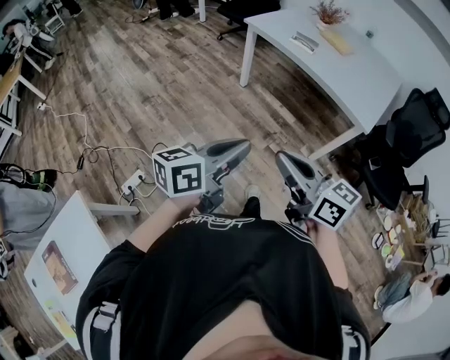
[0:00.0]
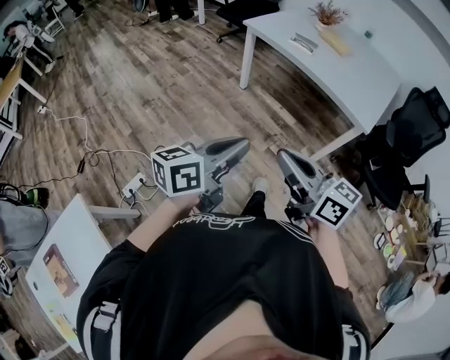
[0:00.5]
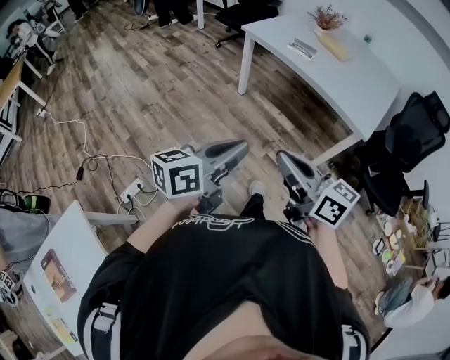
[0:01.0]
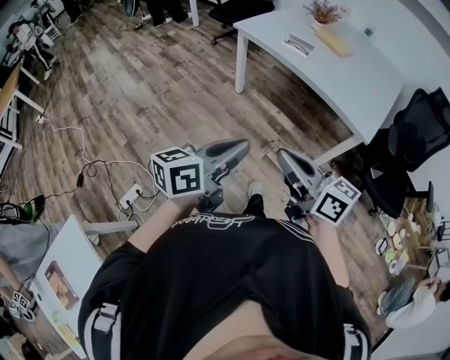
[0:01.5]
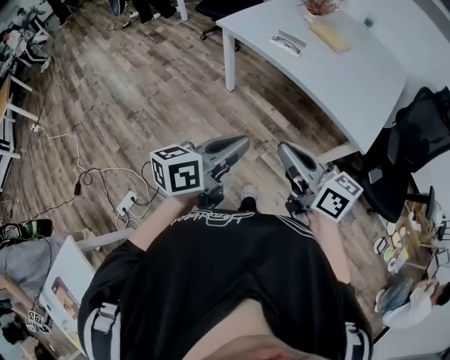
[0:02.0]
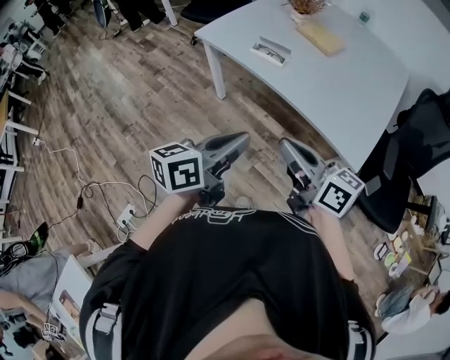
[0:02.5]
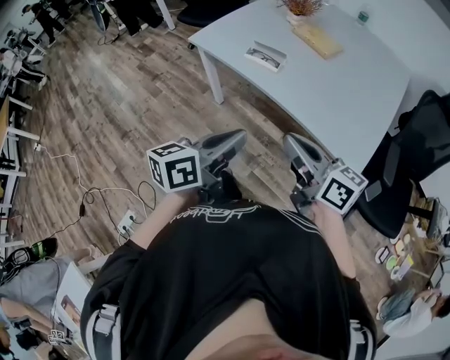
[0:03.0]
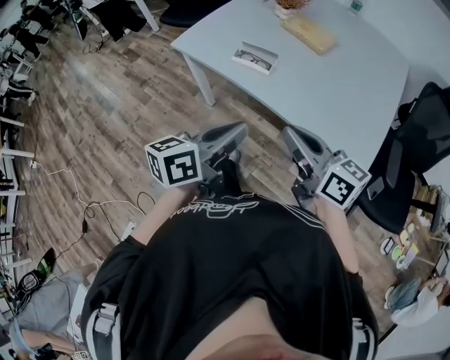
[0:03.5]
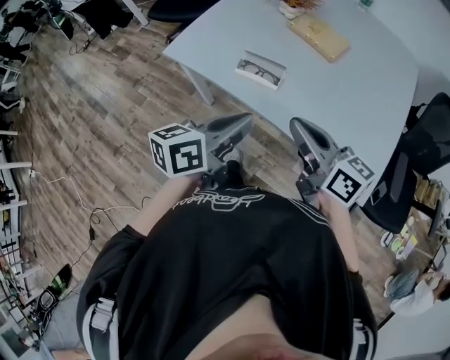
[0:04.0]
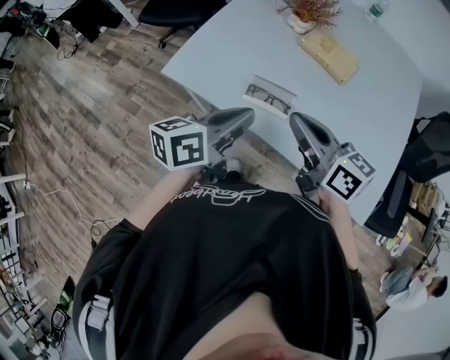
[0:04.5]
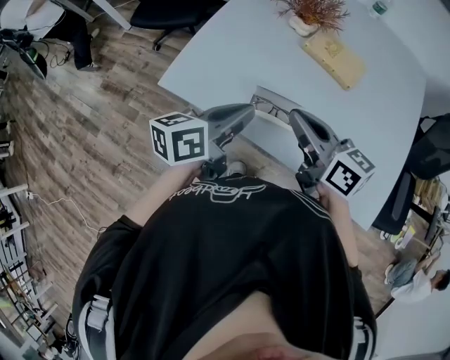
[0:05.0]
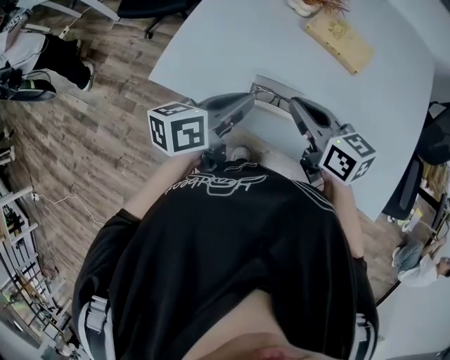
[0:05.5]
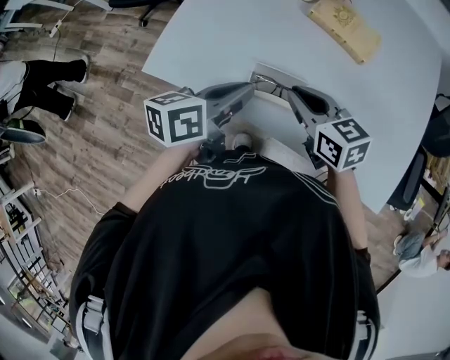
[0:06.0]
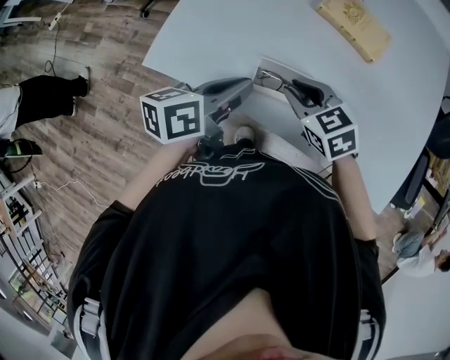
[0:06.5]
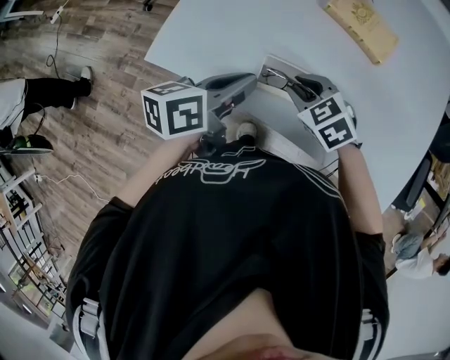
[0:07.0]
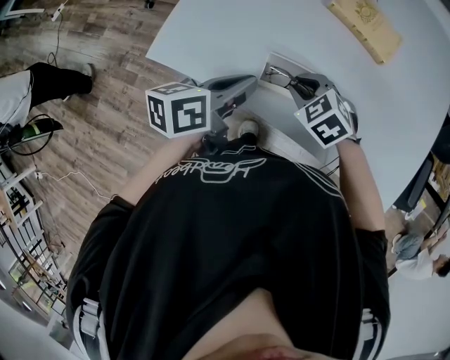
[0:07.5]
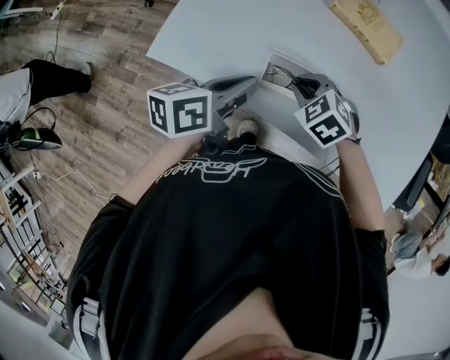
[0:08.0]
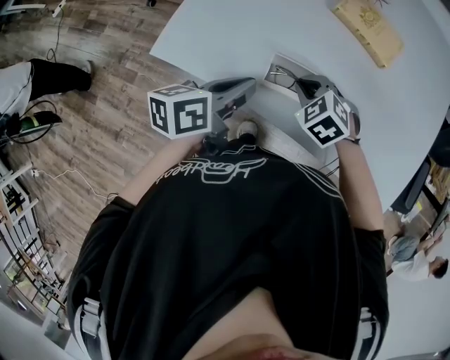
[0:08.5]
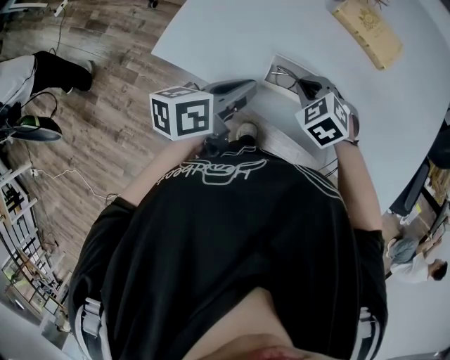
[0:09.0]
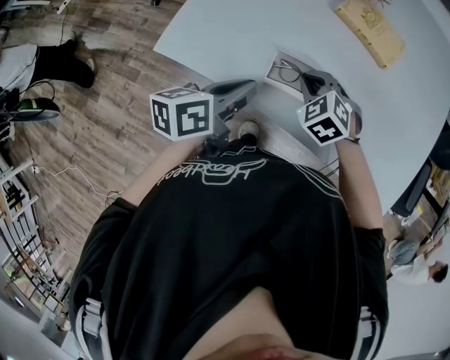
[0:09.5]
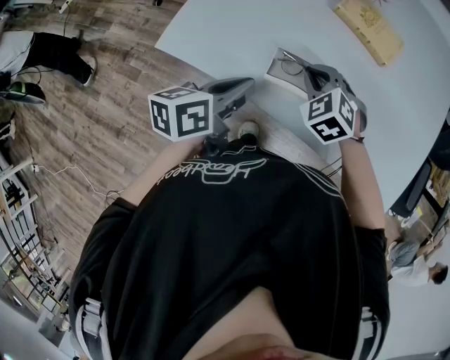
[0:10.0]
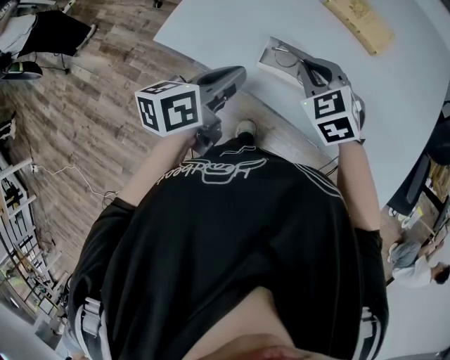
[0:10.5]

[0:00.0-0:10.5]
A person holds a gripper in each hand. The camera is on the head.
0:00.0 to 0:02.0: Both grippers travel together forward and to the right, about 25 cm.
0:02.0 to 0:04.0: The pair of grippers is taken forward, roughly 40 cm.
0:04.0 to 0:06.5: The two grippers go some 30 cm forward, downward and to the left. The right gripper tilts its fingers approximately 40 degrees downward.
0:06.5 to 0:08.5: The right gripper shifts approximately 5 cm downward, and rotates about 30 degrees.
0:08.5 to 0:10.5: The left gripper moves some 5 cm. Meanwhile the right gripper moves upward, roughly 10 cm.

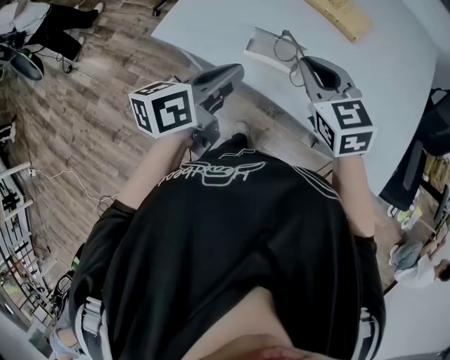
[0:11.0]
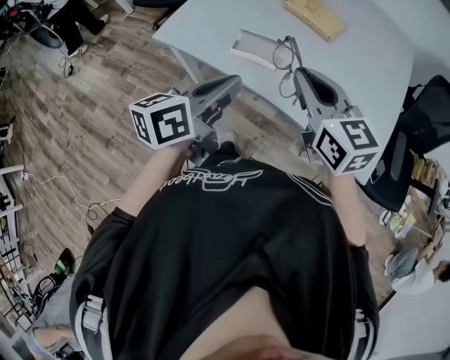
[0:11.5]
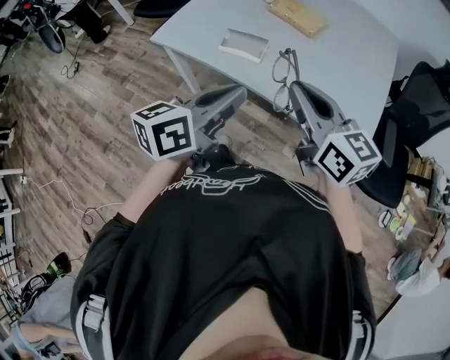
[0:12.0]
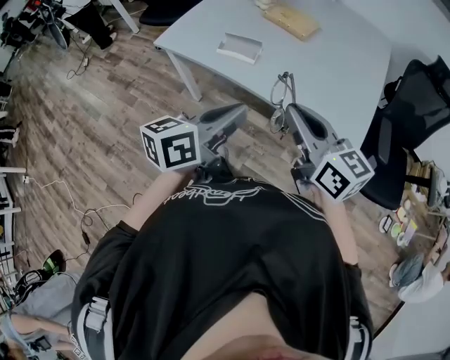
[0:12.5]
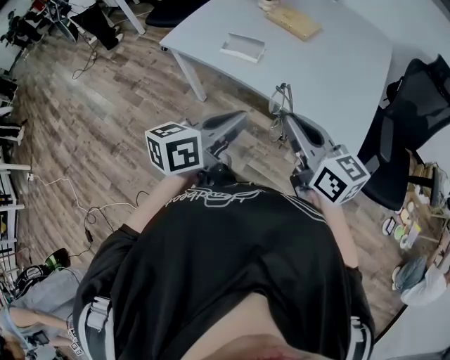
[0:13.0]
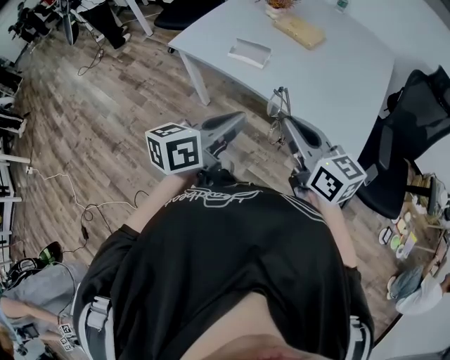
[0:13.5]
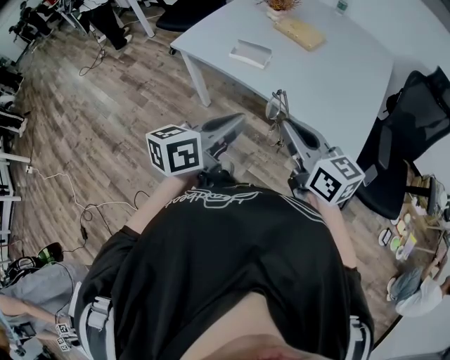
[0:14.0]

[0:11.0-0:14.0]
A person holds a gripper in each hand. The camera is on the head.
0:11.0 to 0:12.5: Both grippers travel together backward and to the right, approximately 30 cm. The right gripper swivels about 30 degrees.
0:12.5 to 0:14.0: Both grippers move backward, about 5 cm.

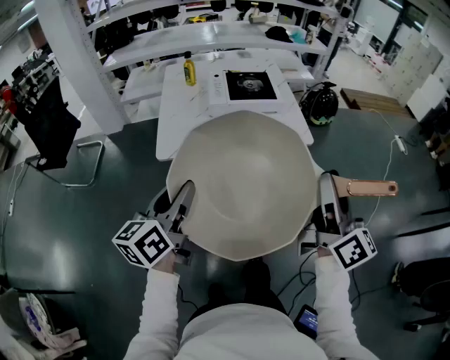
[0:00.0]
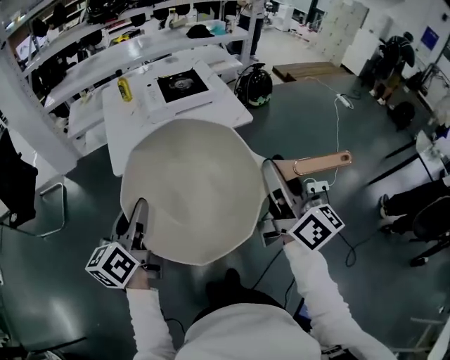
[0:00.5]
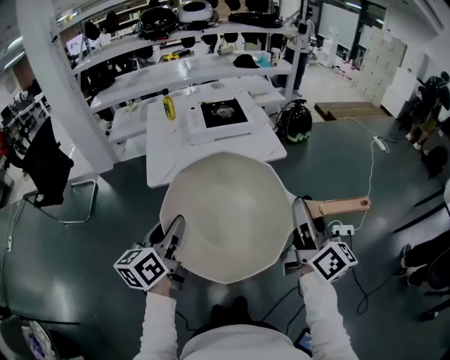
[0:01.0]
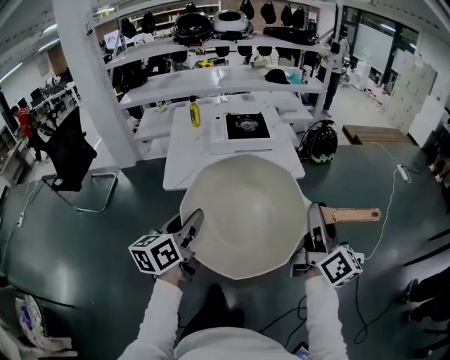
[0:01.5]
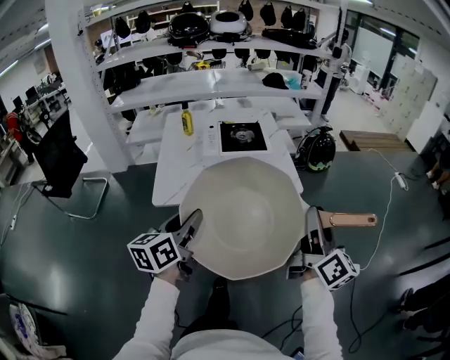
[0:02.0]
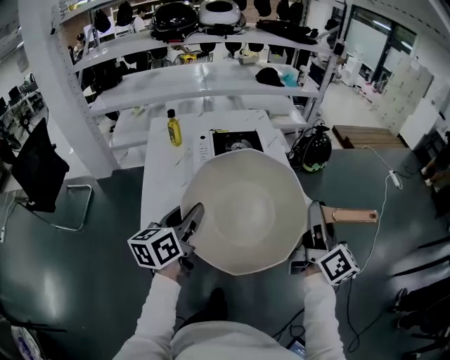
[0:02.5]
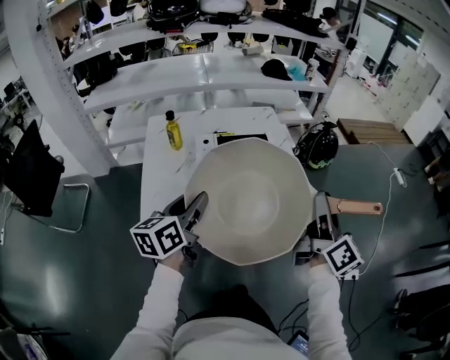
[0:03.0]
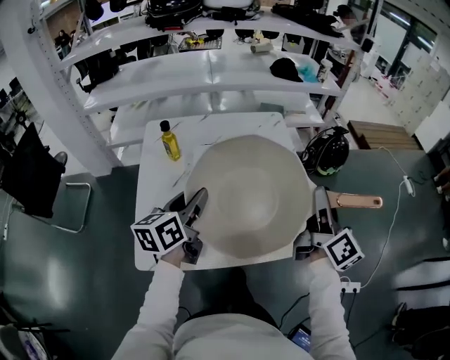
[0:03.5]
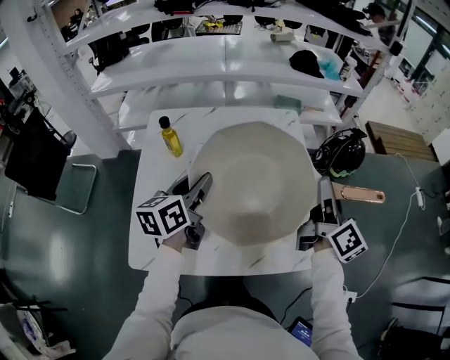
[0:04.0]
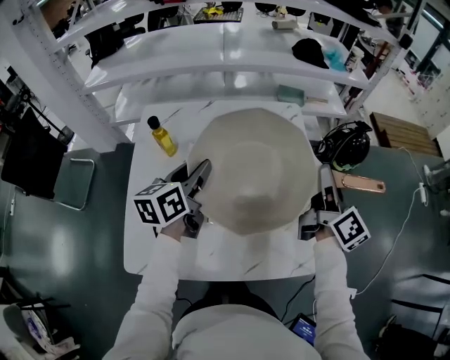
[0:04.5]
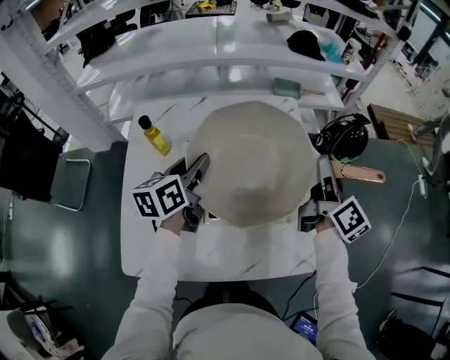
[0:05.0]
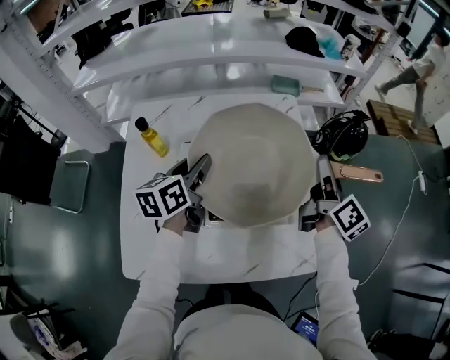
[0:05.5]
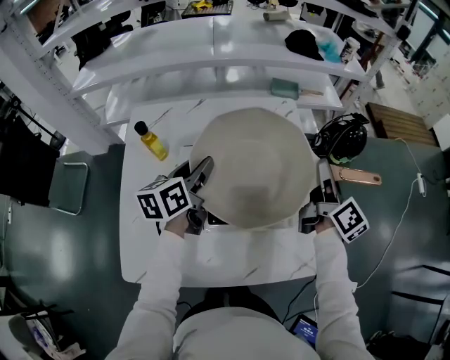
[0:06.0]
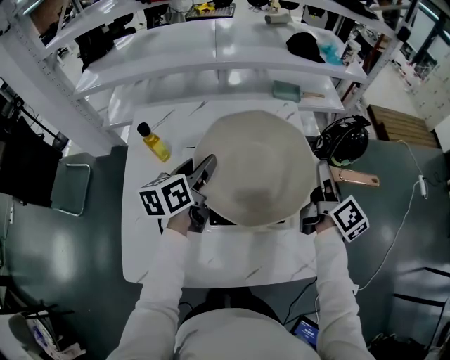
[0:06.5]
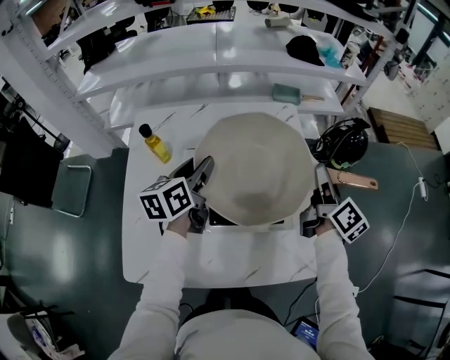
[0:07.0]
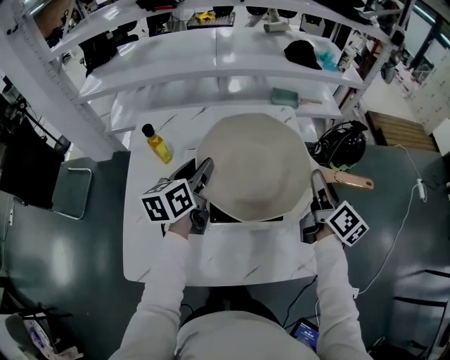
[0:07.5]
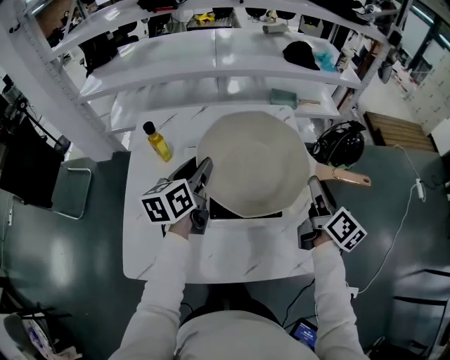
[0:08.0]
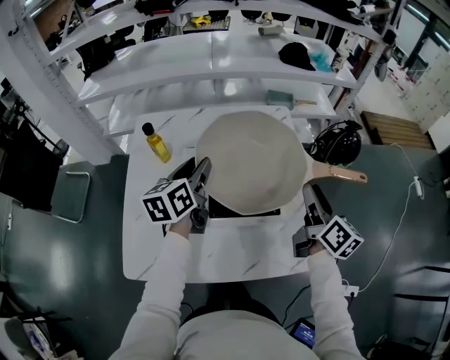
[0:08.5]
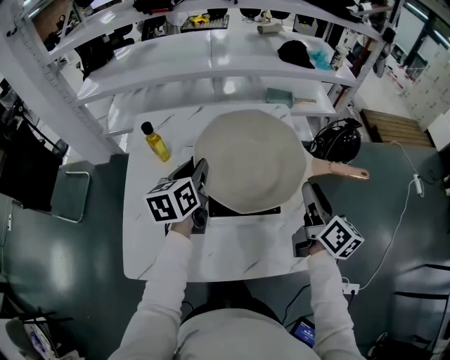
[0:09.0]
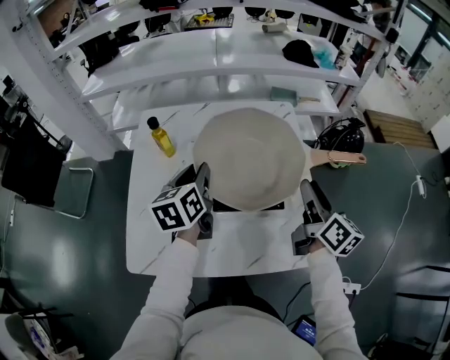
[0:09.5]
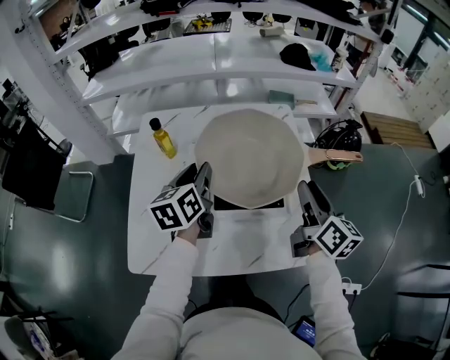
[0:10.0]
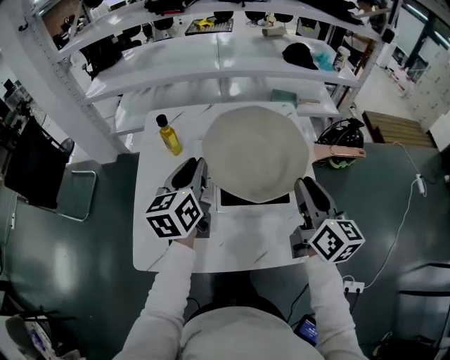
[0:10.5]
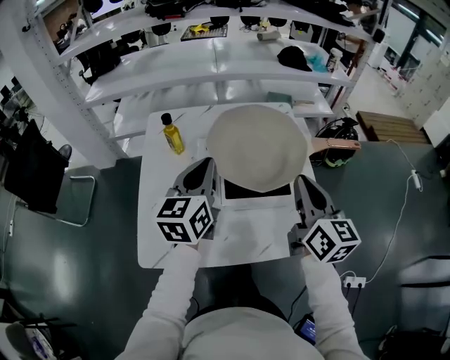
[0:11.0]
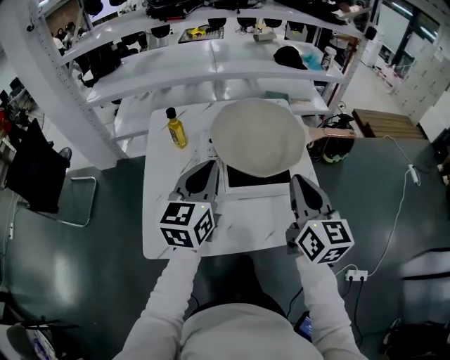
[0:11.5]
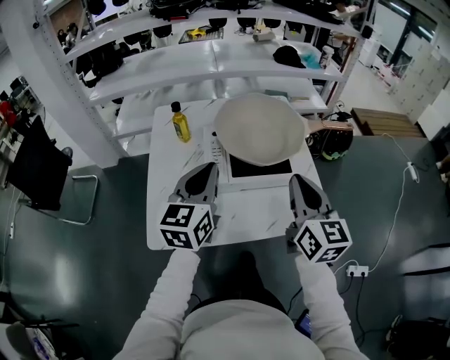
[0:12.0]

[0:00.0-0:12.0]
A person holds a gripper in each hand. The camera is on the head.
0:00.0 to 0:02.0: The grippers both shift forward by some 10 cm.
0:02.0 to 0:04.0: The two grippers travel together, forward, roughly 50 cm.
0:04.0 to 0:06.0: The right gripper travels forward and downward by roughly 10 cm; the left gripper travels forward by roughly 10 cm.
0:06.0 to 0:08.0: The right gripper moves backward, about 5 cm.
0:08.0 to 0:10.0: The right gripper moves backward and to the left, about 10 cm.
0:10.0 to 0:12.0: The left gripper travels backward and upward by about 20 cm, rotates roughly 30 degrees, and closes its fingers; the right gripper is displaced backward and to the left by some 20 cm, rotates some 30 degrees, and closes its fingers.

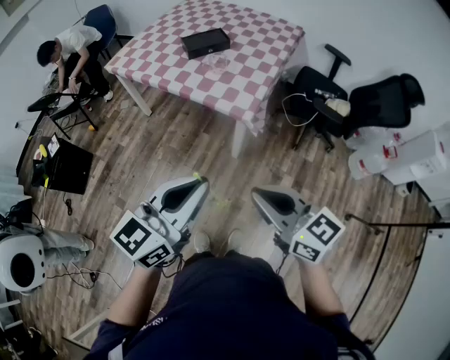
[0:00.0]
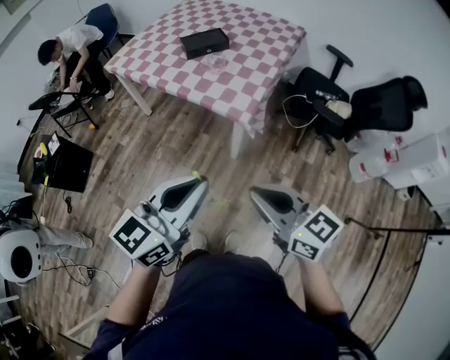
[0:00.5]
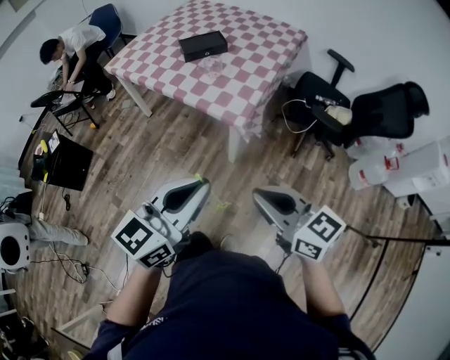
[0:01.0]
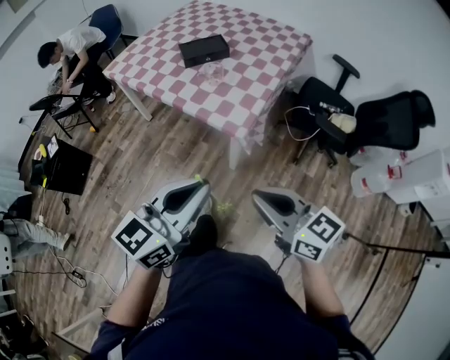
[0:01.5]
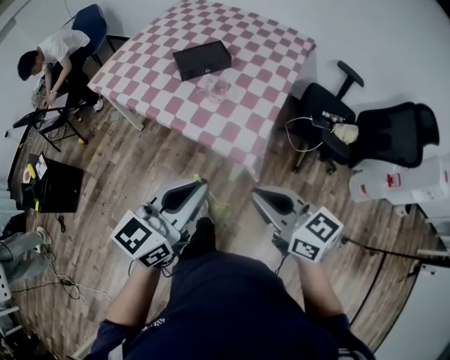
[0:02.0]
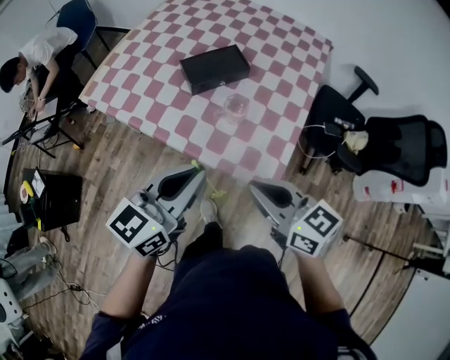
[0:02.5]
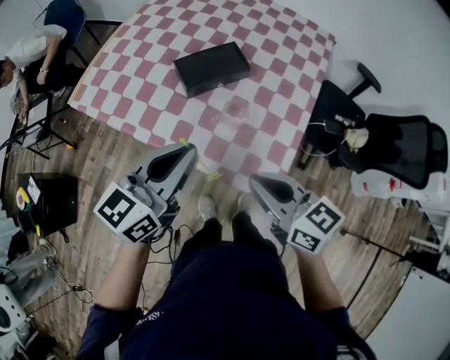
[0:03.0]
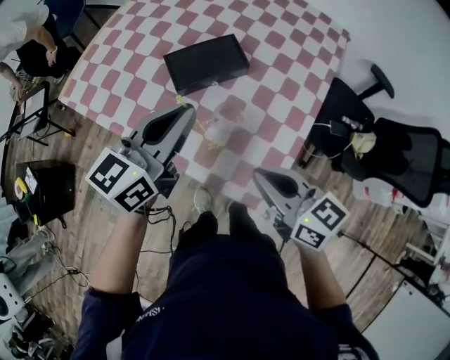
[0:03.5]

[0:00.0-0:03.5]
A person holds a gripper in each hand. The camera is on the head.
0:00.0 to 0:02.0: Both grippers move forward, roughly 25 cm.
0:02.0 to 0:03.5: The two grippers go some 35 cm forward.
